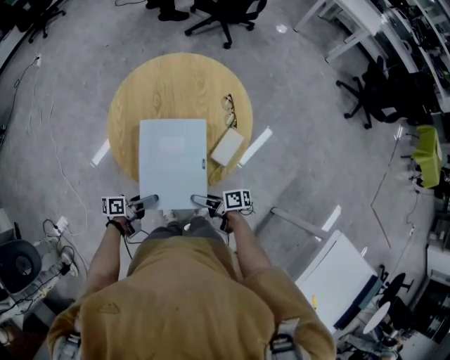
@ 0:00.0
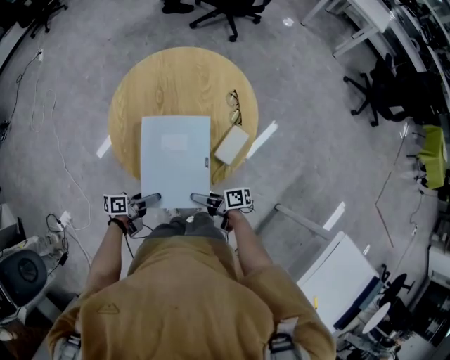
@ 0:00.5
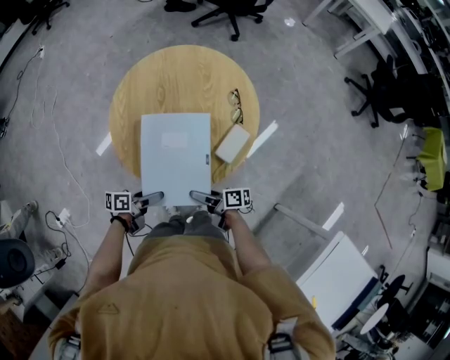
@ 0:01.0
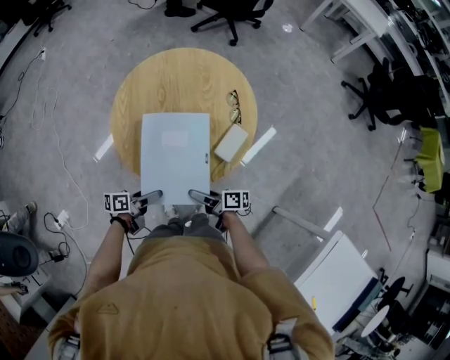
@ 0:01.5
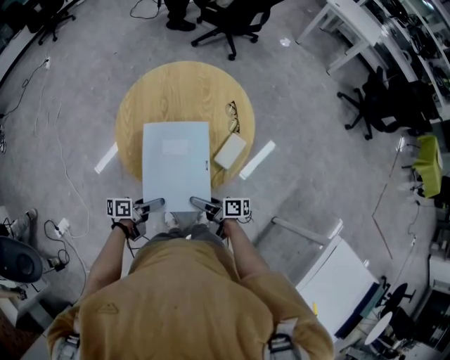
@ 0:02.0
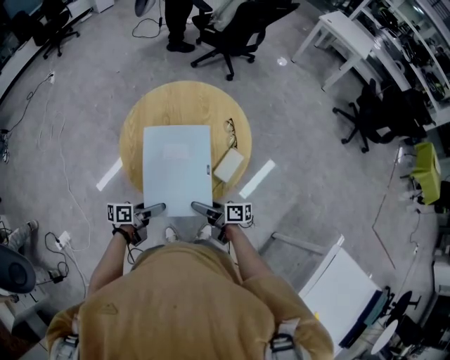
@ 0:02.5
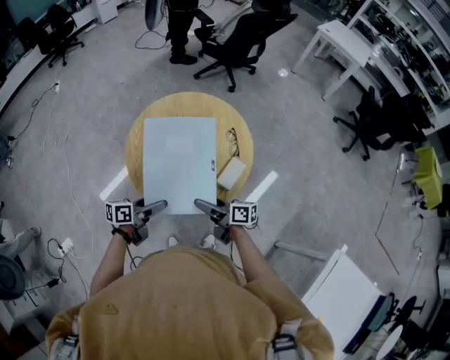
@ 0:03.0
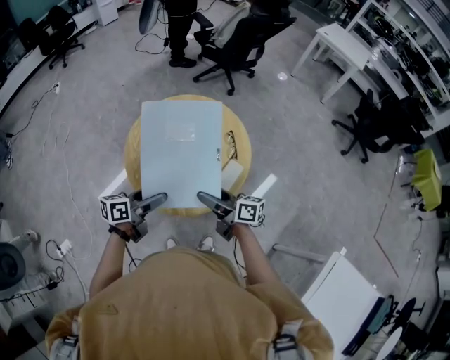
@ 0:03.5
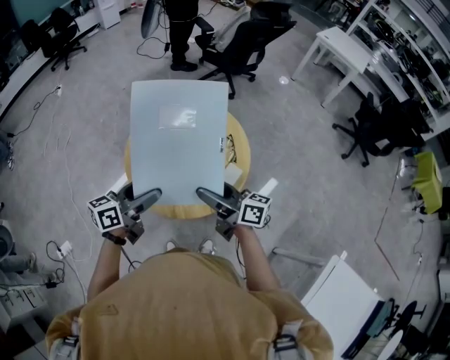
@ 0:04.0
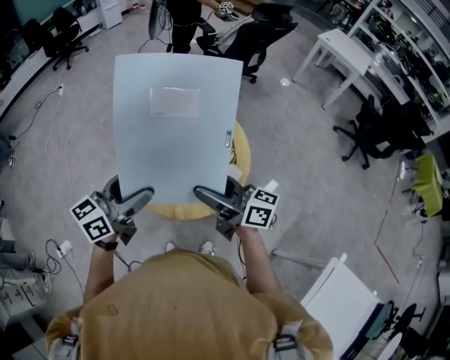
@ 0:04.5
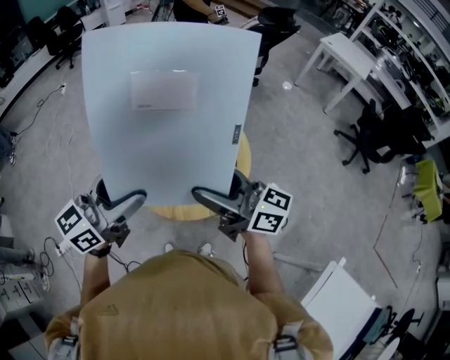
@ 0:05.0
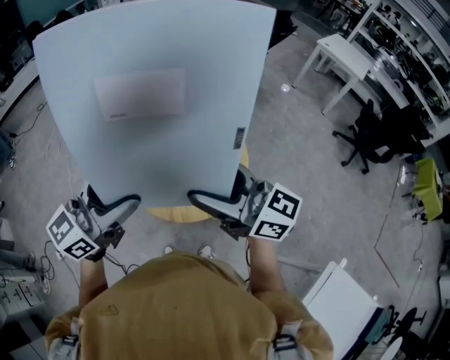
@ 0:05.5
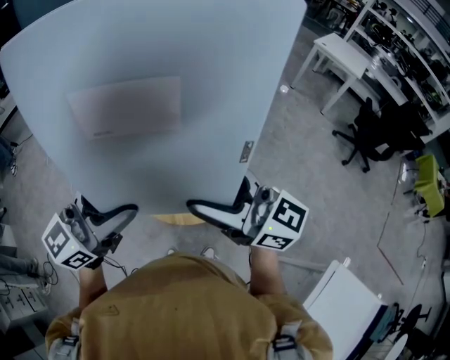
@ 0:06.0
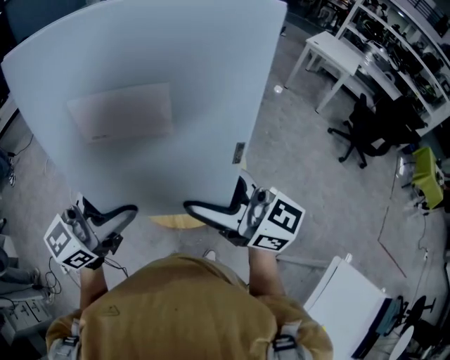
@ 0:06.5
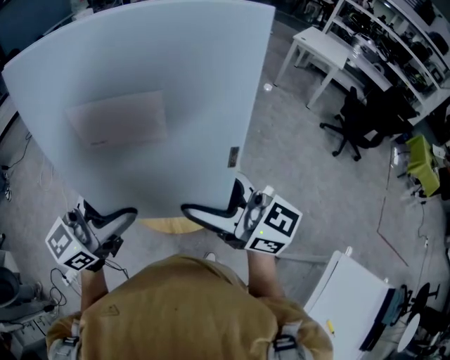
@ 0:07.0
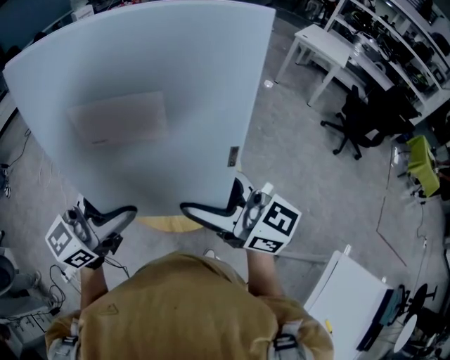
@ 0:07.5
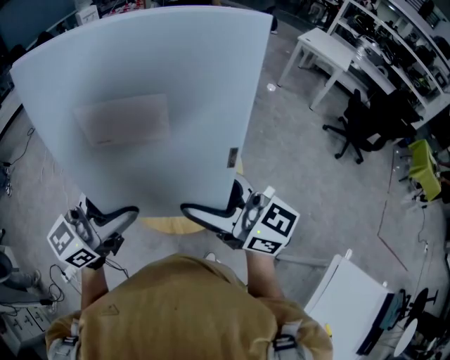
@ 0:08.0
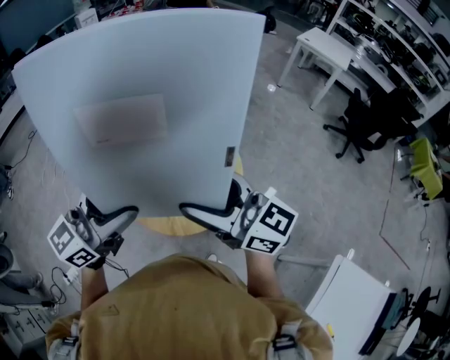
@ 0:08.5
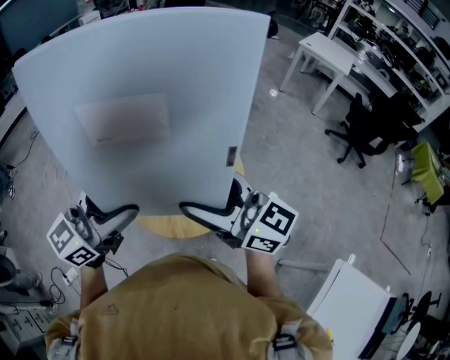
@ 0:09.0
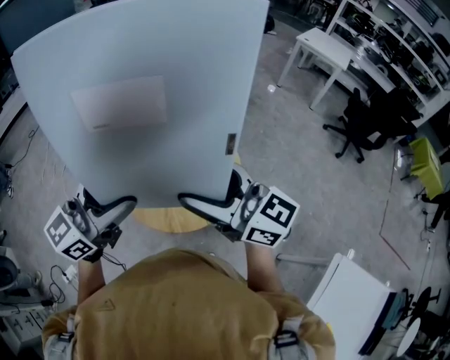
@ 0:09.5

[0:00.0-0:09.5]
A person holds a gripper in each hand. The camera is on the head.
0:00.0 to 0:02.0: The grippers stay close to where they were, moving slightly.
0:02.0 to 0:04.0: The grippers both shift upward by some 25 cm. The left gripper changes its angle by some 40 degrees. The right gripper changes its angle by about 40 degrees.
0:04.0 to 0:05.5: The two grippers go about 20 cm upward. The right gripper changes its angle by roughly 30 degrees; the left gripper turns by about 30 degrees.
0:05.5 to 0:09.5: The grippers stay close to where they were, moving slightly.

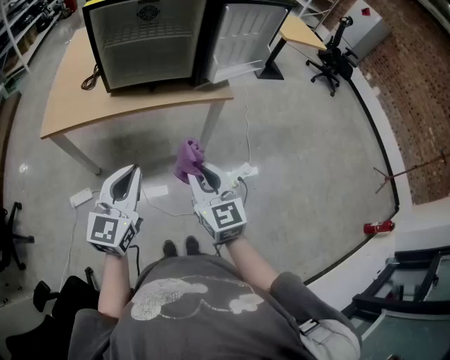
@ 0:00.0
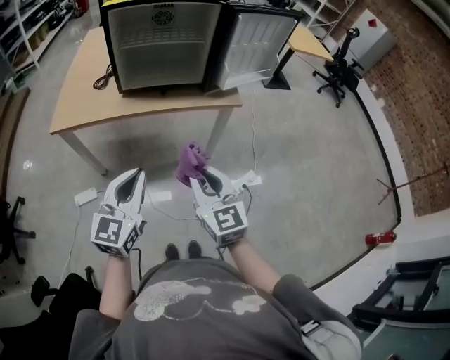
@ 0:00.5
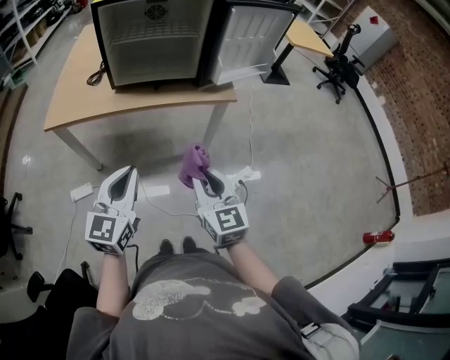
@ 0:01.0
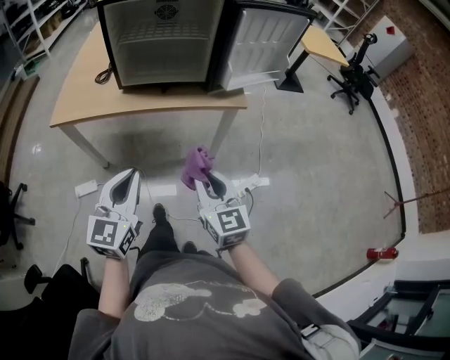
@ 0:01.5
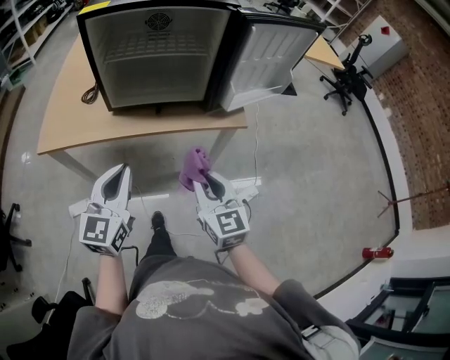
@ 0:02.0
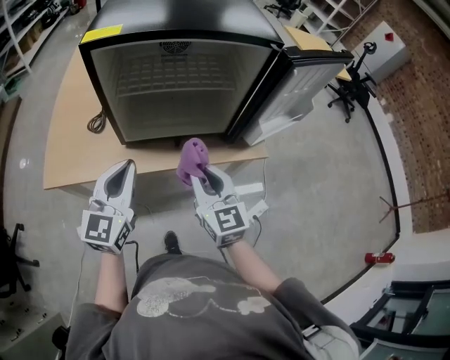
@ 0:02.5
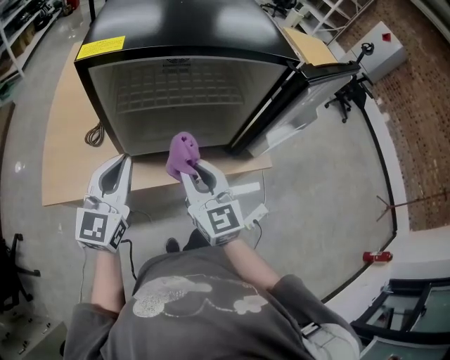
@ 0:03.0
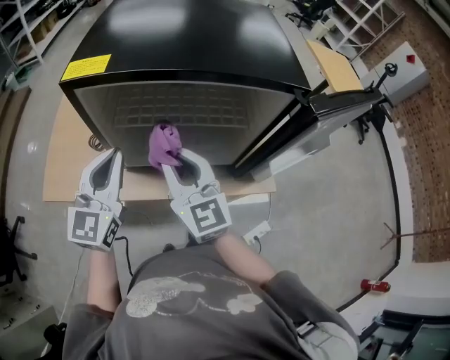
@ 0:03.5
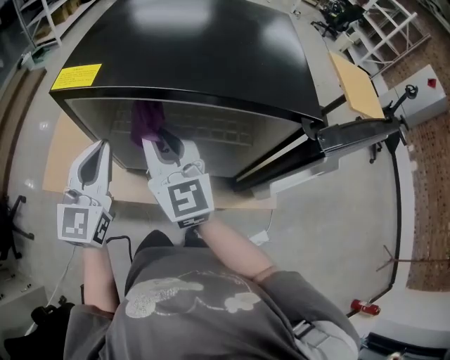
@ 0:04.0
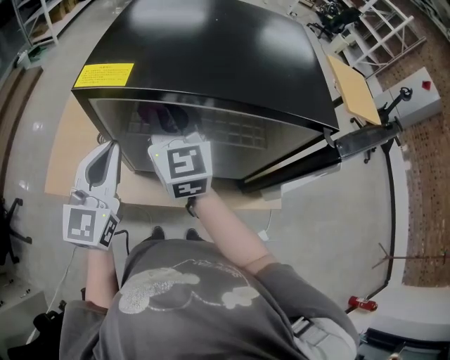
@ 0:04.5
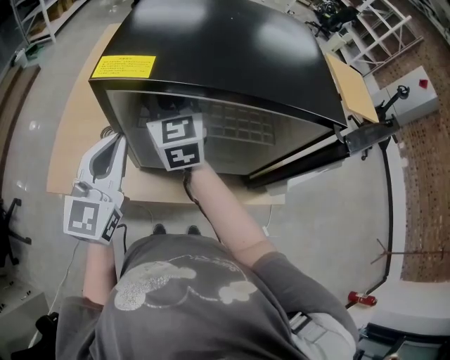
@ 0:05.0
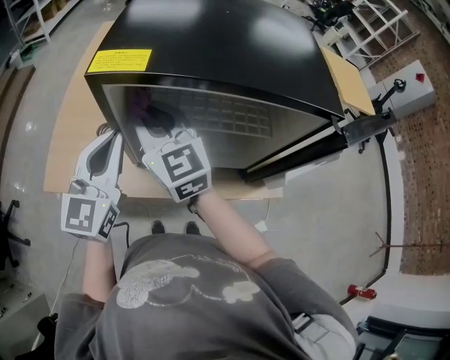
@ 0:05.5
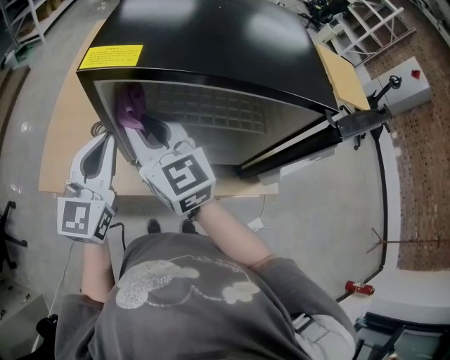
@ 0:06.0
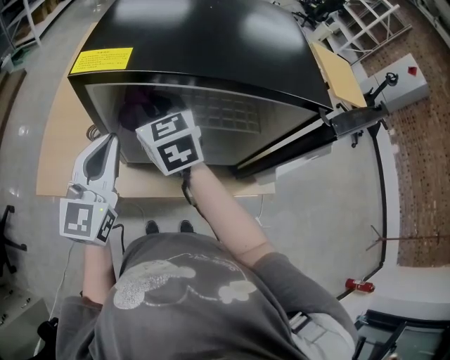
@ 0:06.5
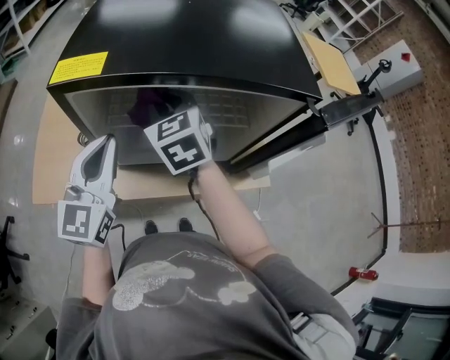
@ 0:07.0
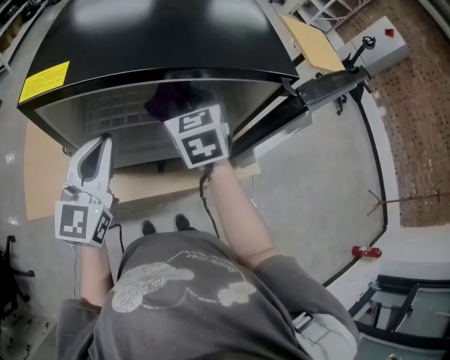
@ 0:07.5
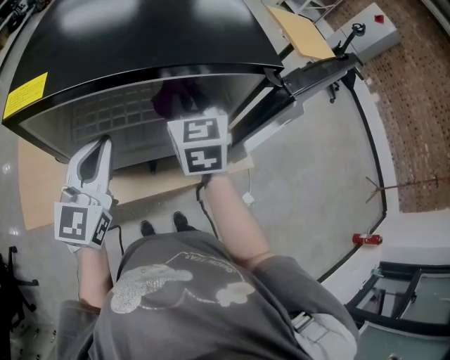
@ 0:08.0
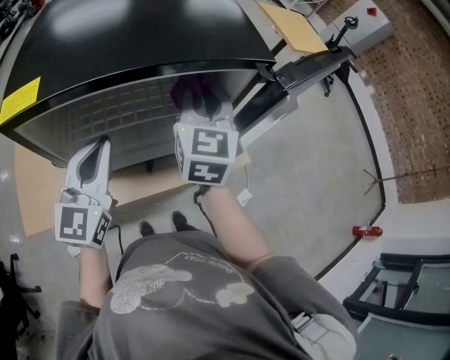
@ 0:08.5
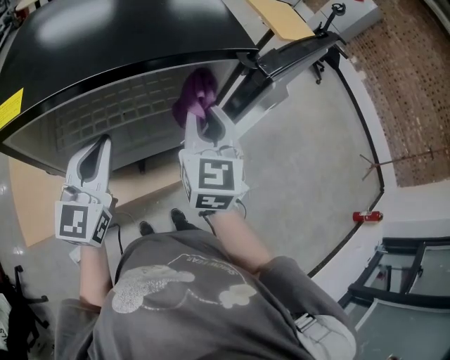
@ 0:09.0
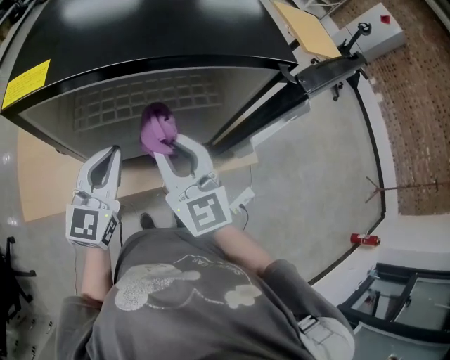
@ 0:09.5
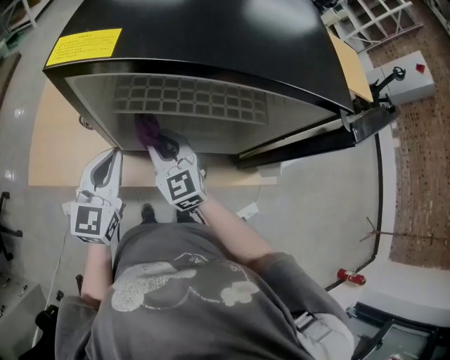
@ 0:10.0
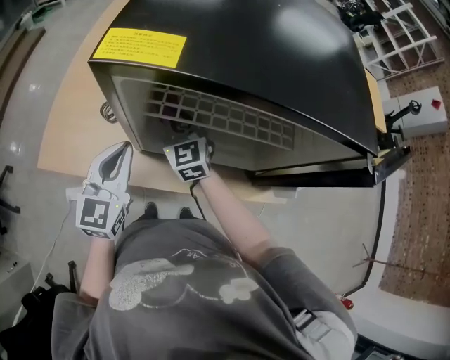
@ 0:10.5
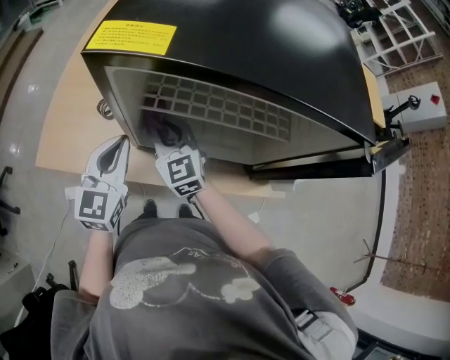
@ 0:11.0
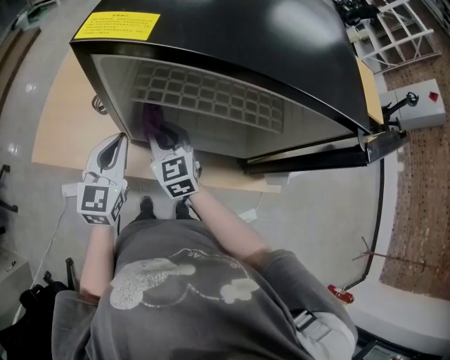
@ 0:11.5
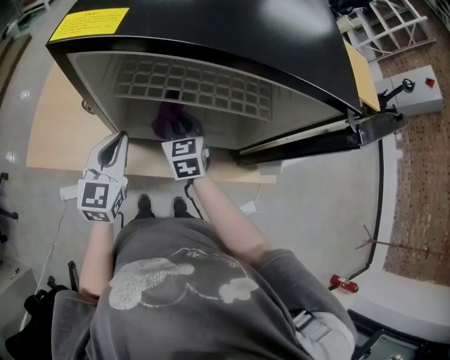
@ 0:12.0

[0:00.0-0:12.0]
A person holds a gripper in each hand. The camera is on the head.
0:00.0 to 0:02.0: The grippers both shift forward by about 15 cm.
0:02.0 to 0:04.0: The right gripper moves forward, to the left and upward, about 40 cm, and changes its angle by about 20 degrees; the left gripper heads forward, covering roughly 30 cm.
0:04.0 to 0:06.0: The right gripper is displaced to the left by about 10 cm, and travels forward and back again, about 10 cm each way.
0:06.0 to 0:08.0: The left gripper moves some 10 cm. Meanwhile the right gripper ends up about 25 cm from where it was, and rotates roughly 40 degrees.
0:08.0 to 0:10.0: The right gripper ends up roughly 25 cm from where it was, and turns by about 30 degrees. The left gripper heads downward, covering approximately 10 cm.
0:10.0 to 0:12.0: The right gripper goes roughly 10 cm downward and to the right, and swivels roughly 20 degrees.

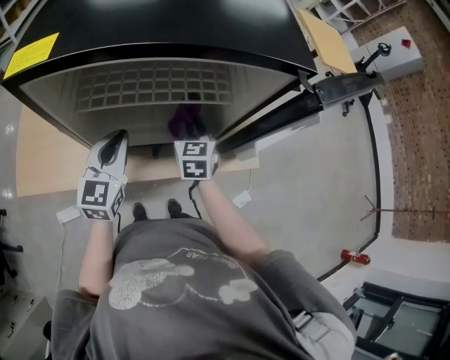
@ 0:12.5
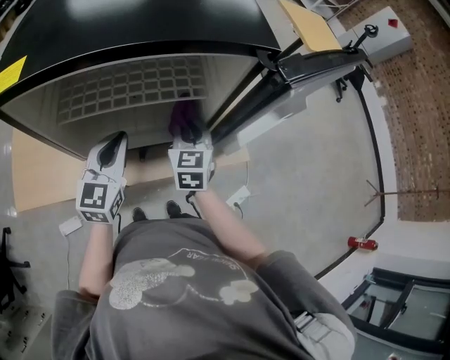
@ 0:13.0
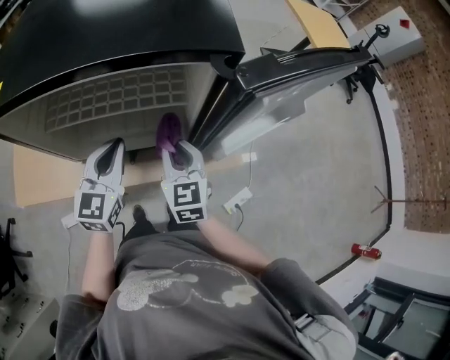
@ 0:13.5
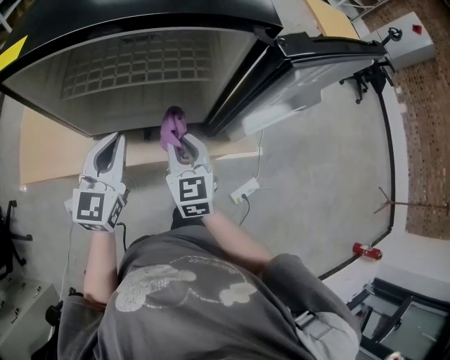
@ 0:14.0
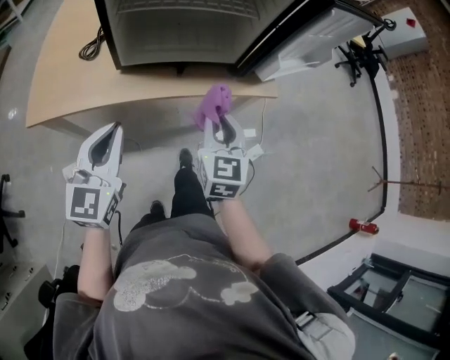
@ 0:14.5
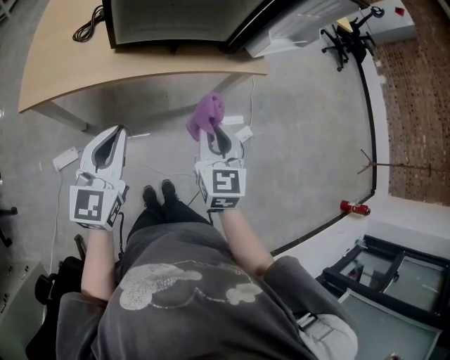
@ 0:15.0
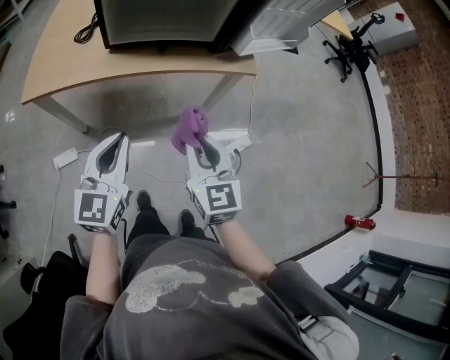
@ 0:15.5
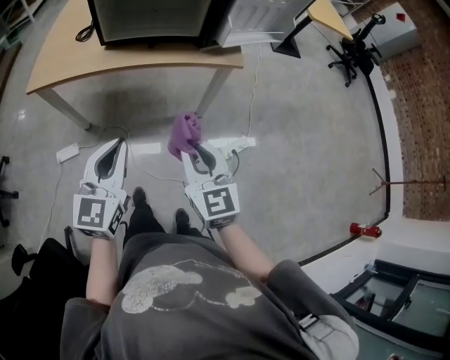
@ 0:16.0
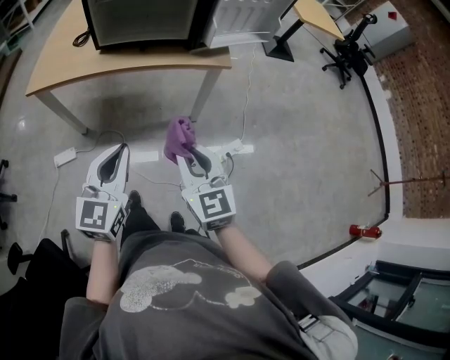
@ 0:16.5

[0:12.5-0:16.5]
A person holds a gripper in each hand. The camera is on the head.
0:12.5 to 0:14.5: Both grippers move backward, roughly 25 cm.
0:14.5 to 0:16.5: The right gripper moves backward, about 25 cm, and rotates about 20 degrees. The left gripper is displaced backward and to the right by approximately 30 cm.

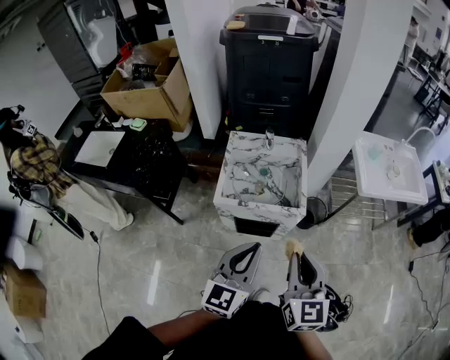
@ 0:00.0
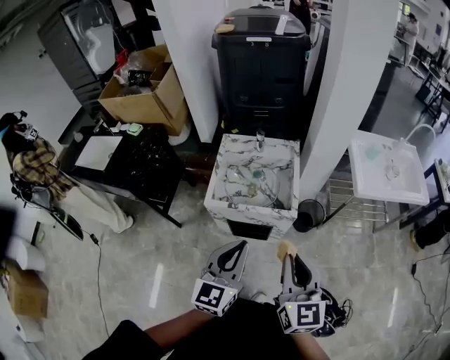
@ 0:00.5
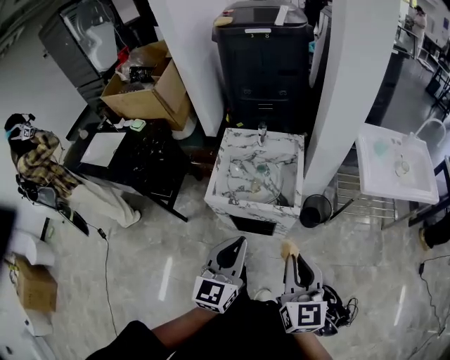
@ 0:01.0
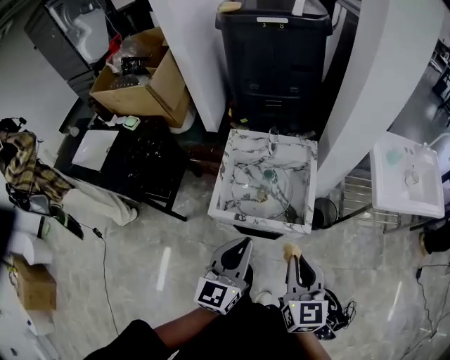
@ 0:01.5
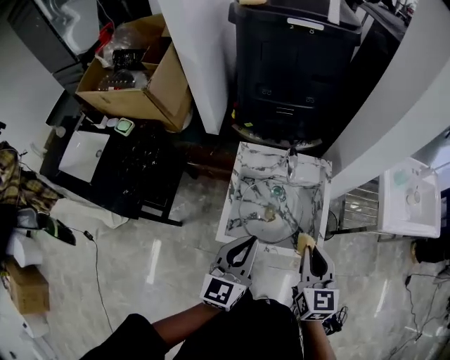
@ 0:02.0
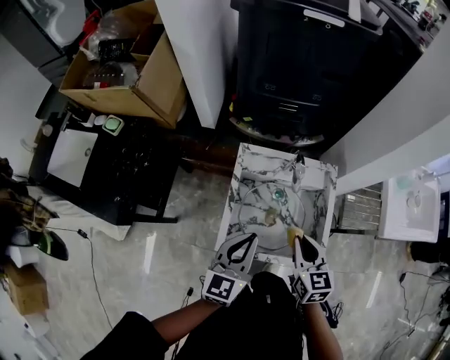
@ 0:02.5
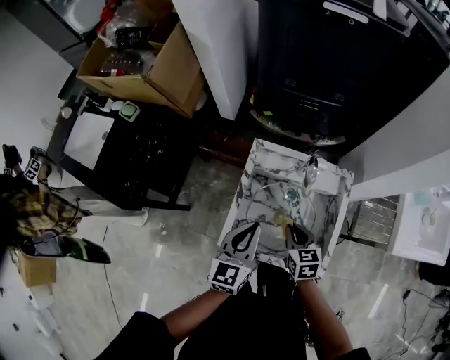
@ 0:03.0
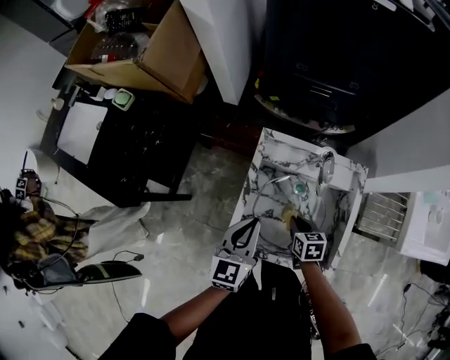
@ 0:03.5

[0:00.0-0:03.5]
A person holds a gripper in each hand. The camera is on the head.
0:00.0 to 0:02.0: The two grippers go approximately 25 cm forward.
0:02.0 to 0:03.5: The right gripper travels downward and forward by approximately 35 cm, and tips its fingers downward by roughly 30 degrees. The left gripper heads downward and forward, covering roughly 15 cm.
